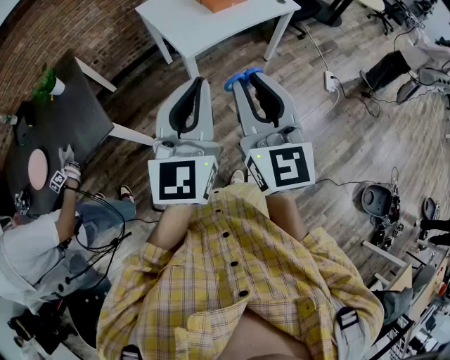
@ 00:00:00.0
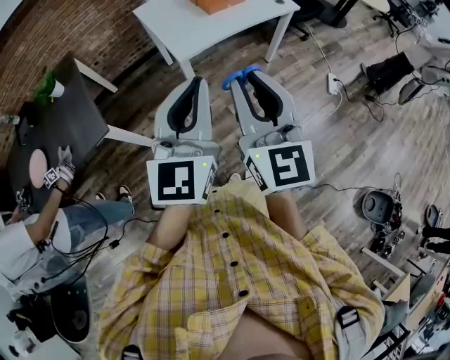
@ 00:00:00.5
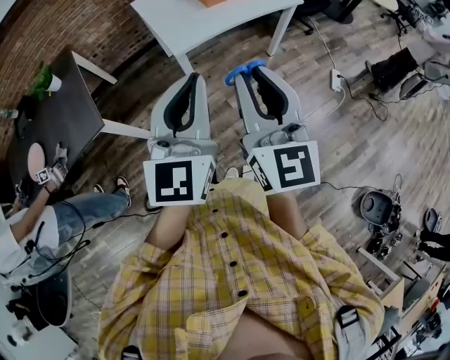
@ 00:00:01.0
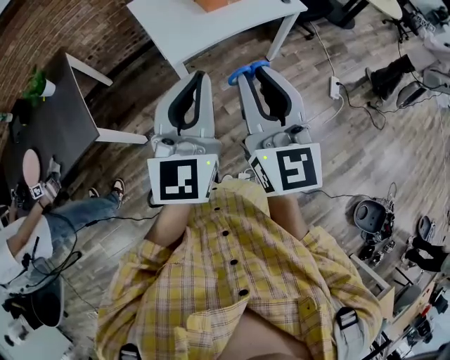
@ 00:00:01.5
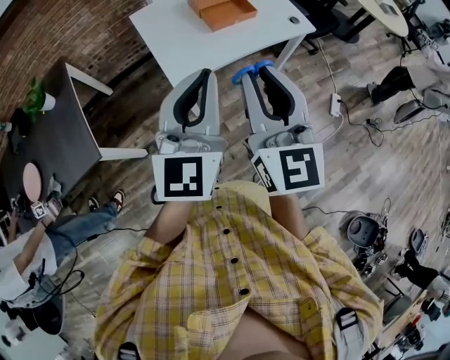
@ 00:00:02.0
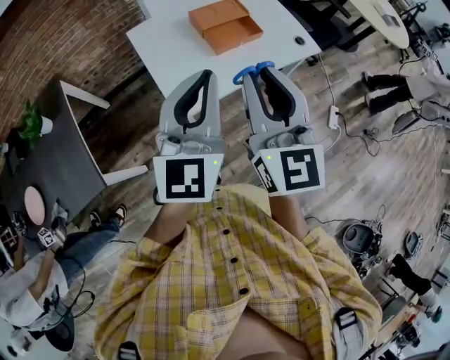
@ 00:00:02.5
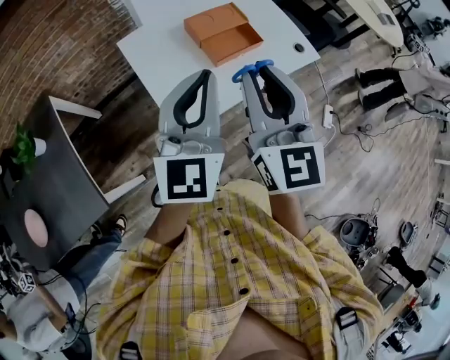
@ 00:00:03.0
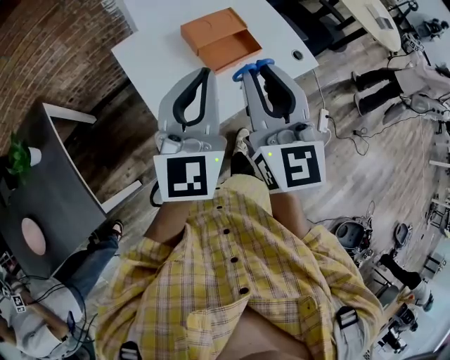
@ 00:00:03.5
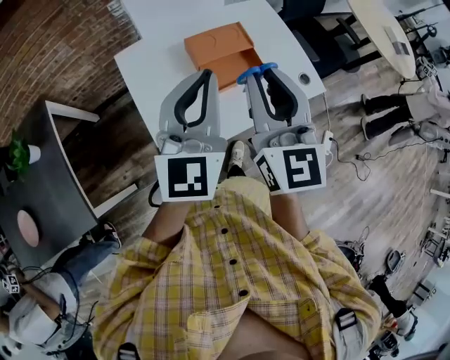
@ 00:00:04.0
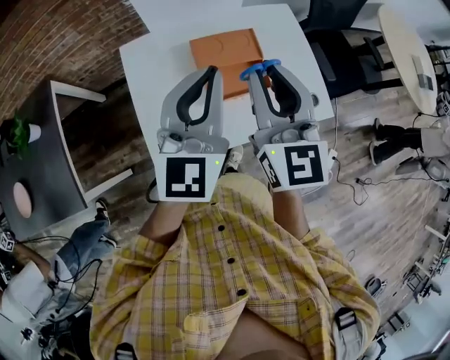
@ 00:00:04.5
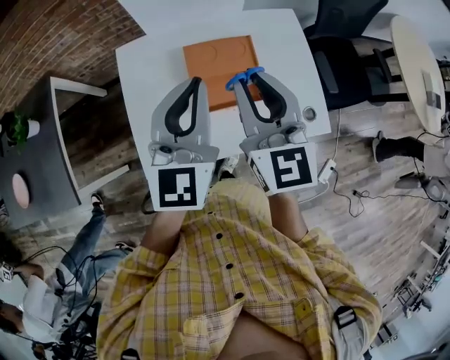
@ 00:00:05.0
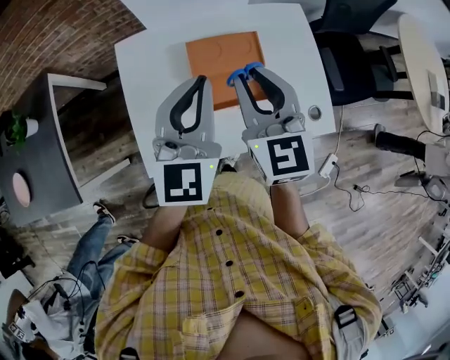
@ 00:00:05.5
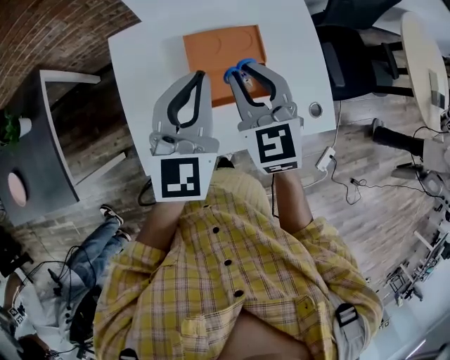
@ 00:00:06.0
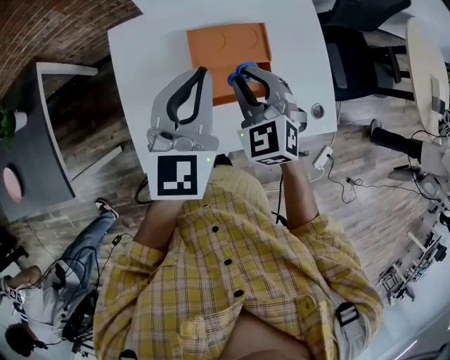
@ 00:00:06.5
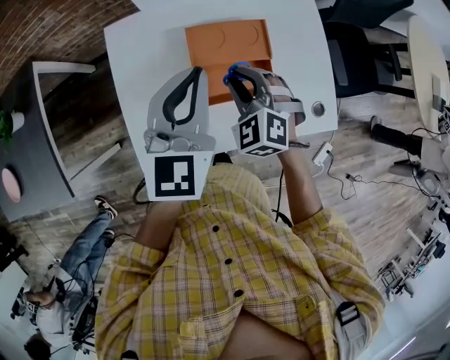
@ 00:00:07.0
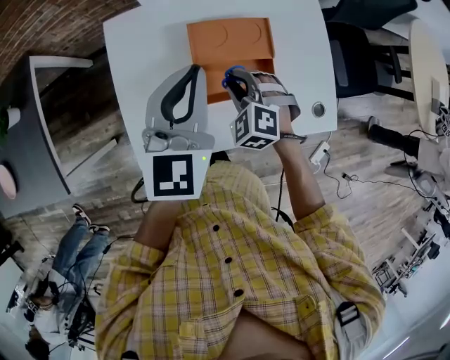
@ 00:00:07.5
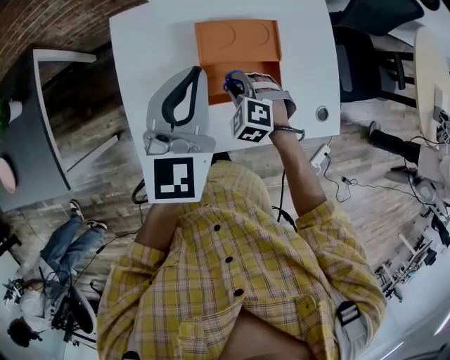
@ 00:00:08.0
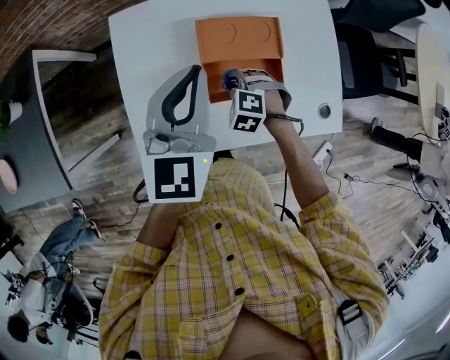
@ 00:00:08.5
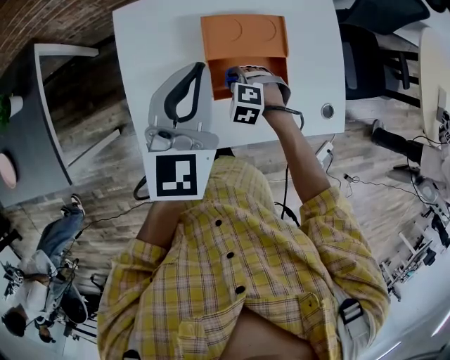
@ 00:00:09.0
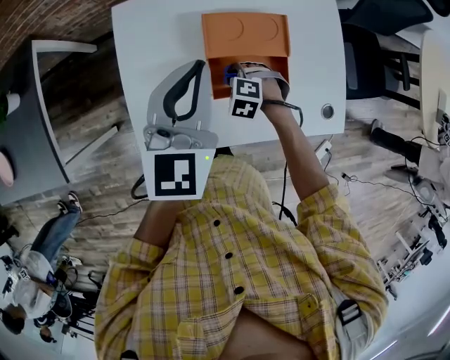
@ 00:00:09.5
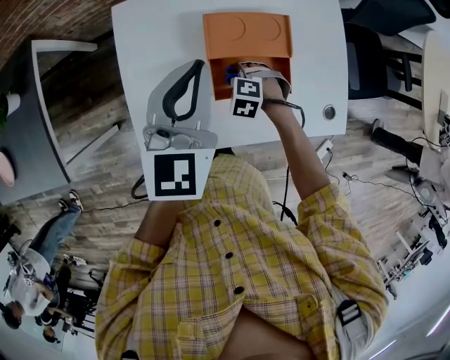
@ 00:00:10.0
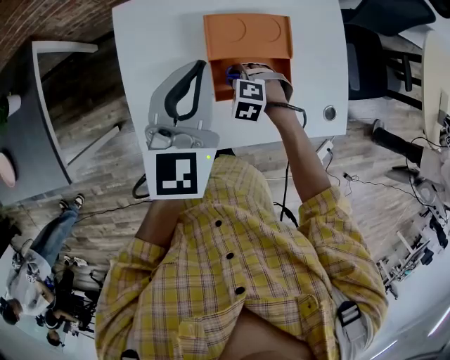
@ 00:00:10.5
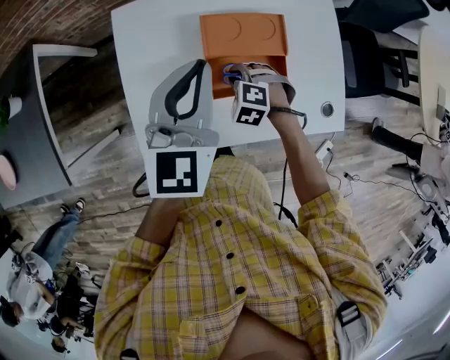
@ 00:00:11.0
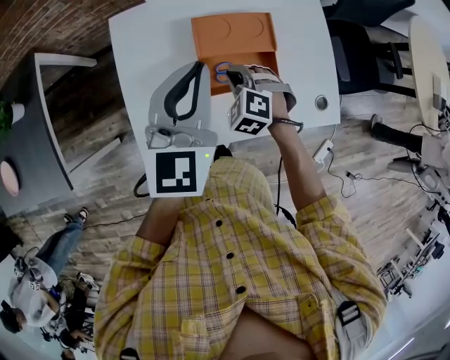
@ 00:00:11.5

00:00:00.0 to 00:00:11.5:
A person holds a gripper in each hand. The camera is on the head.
00:00:00.0 to 00:00:02.0: The grippers both shift forward by about 20 cm.
00:00:02.0 to 00:00:04.0: Both grippers move forward, about 35 cm.
00:00:04.0 to 00:00:06.0: The left gripper goes roughly 20 cm forward, downward and to the right. The right gripper moves forward and downward, about 20 cm, and turns by roughly 30 degrees.
00:00:06.0 to 00:00:07.5: The right gripper goes some 20 cm downward, and angles its fingers downward, by approximately 30 degrees.
00:00:07.5 to 00:00:09.5: The right gripper is displaced downward by some 15 cm, and rotates some 20 degrees.
00:00:09.5 to 00:00:11.5: The right gripper is displaced upward by roughly 10 cm, and swivels some 20 degrees.

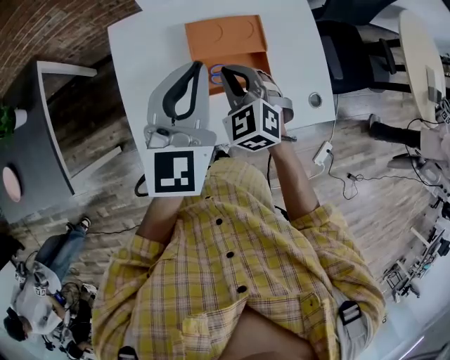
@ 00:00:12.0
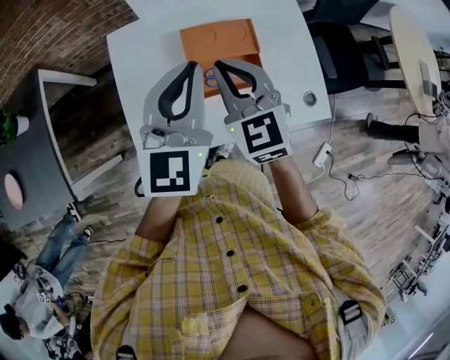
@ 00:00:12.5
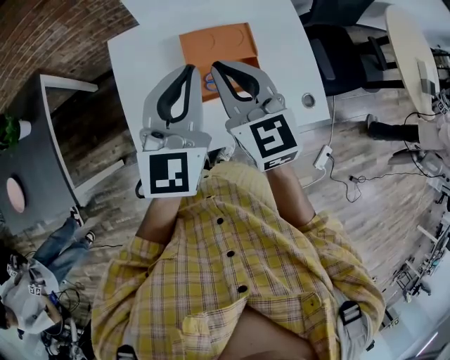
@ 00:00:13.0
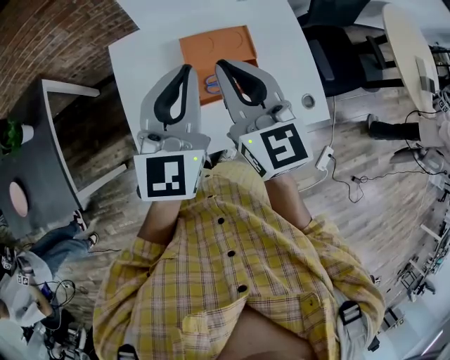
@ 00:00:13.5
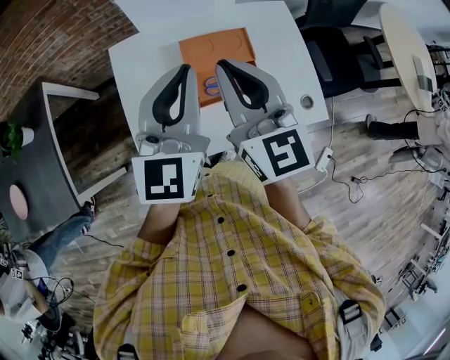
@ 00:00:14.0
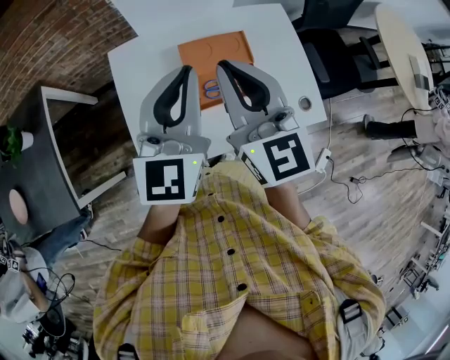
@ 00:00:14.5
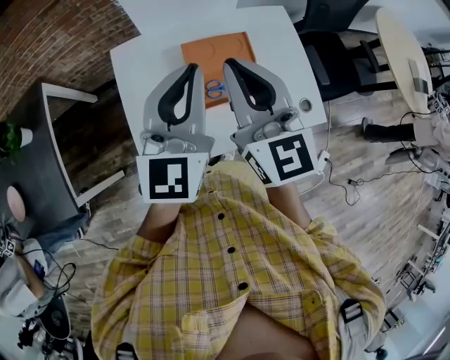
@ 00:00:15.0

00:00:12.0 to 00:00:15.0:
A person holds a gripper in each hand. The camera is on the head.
00:00:12.0 to 00:00:13.5: The right gripper goes roughly 20 cm upward, and tilts its fingers approximately 30 degrees upward.
00:00:13.5 to 00:00:15.0: There are only small adjustments of the grippers.

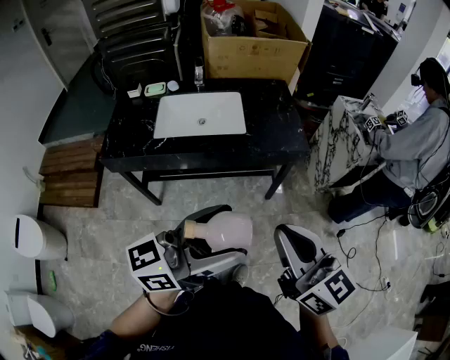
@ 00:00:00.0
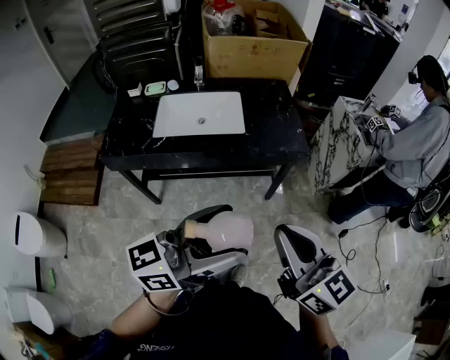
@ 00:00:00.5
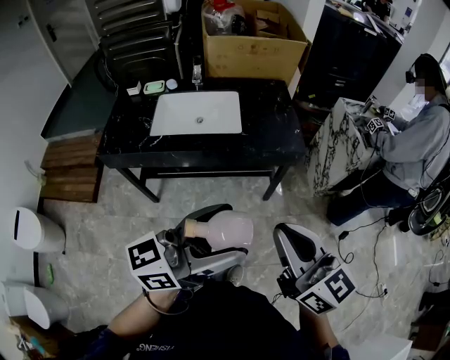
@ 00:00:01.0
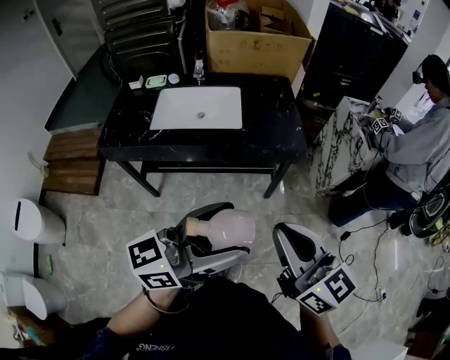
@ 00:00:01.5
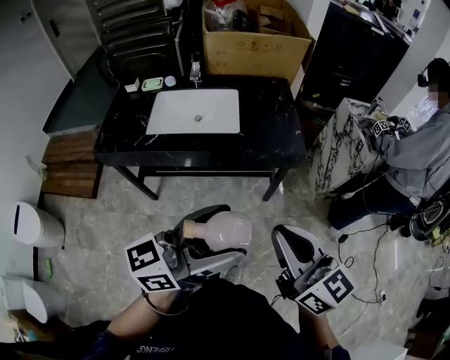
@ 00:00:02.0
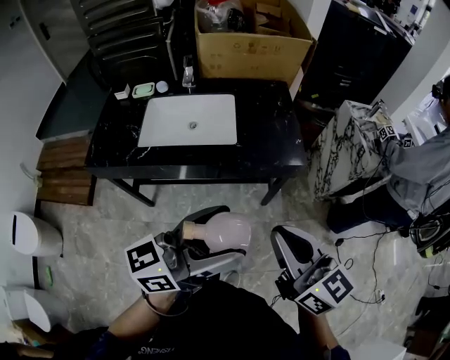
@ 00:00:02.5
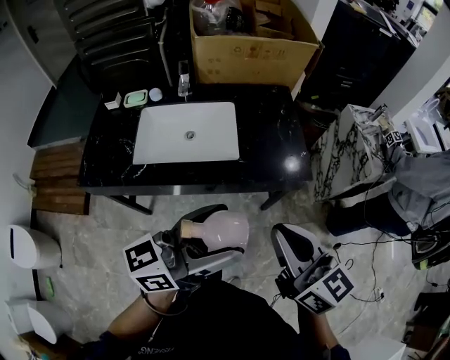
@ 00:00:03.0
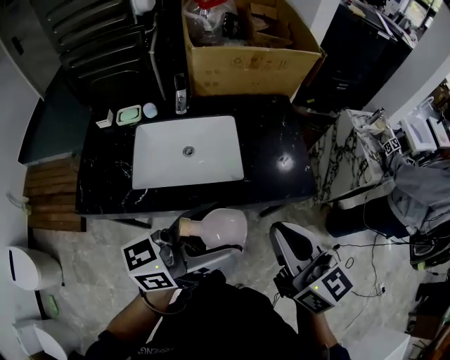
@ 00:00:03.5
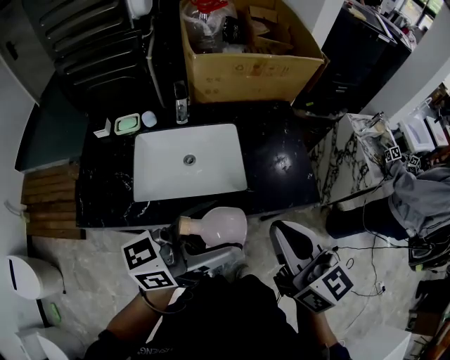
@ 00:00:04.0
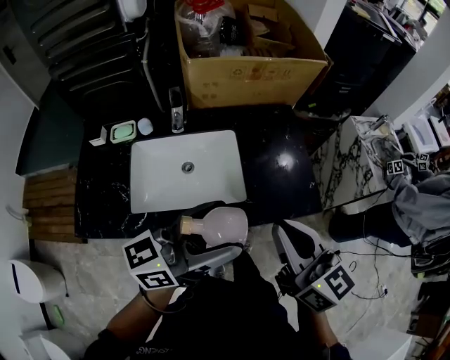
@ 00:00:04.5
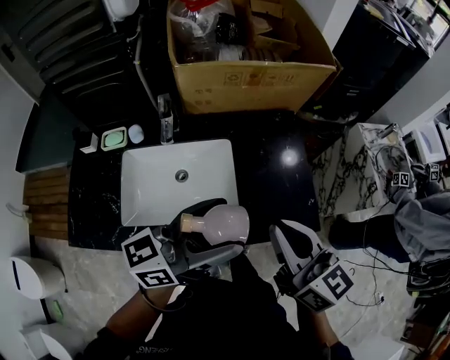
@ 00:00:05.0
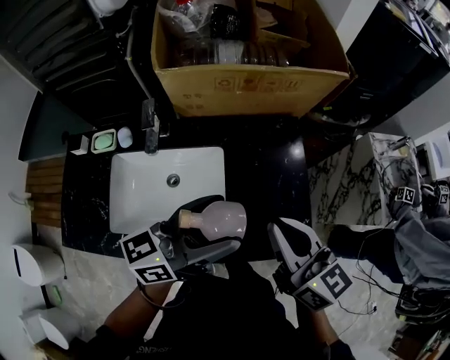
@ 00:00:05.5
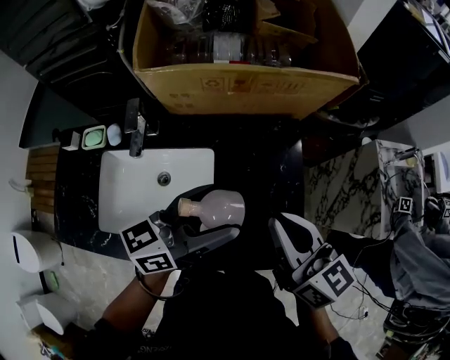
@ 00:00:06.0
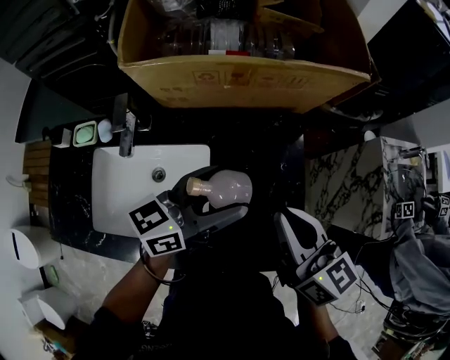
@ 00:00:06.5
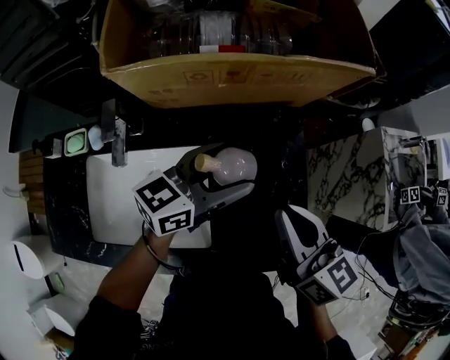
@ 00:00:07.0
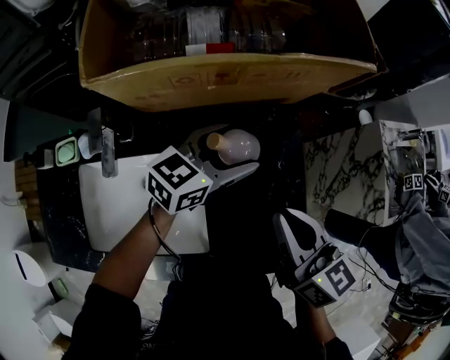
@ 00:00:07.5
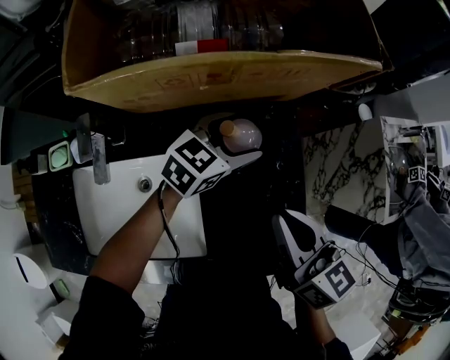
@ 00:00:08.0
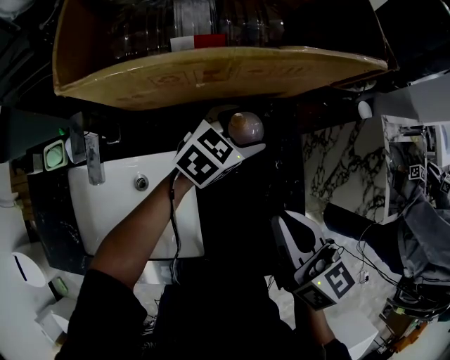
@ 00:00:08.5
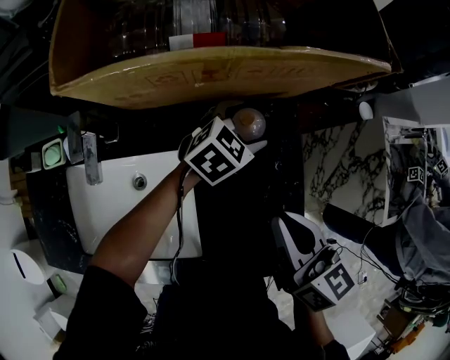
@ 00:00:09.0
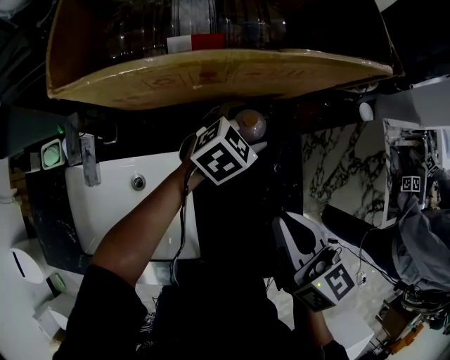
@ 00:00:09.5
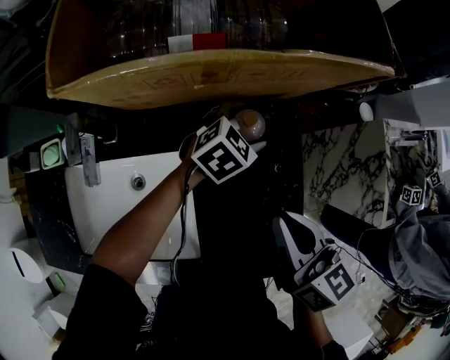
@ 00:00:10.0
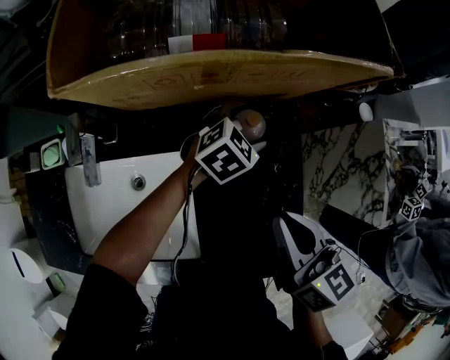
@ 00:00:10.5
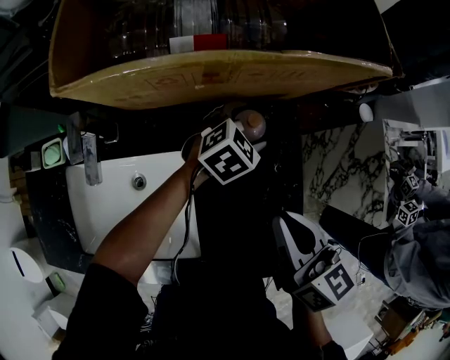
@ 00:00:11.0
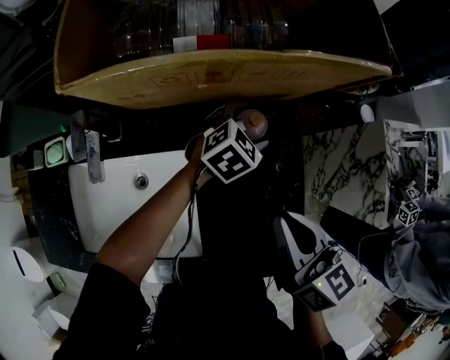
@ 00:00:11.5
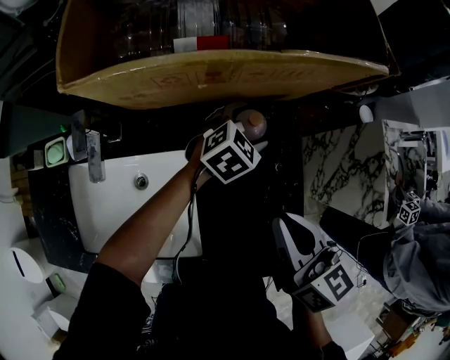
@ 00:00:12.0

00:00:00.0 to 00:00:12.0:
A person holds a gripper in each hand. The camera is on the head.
00:00:00.0 to 00:00:02.0: Both grippers move to the right, about 5 cm.
00:00:02.0 to 00:00:04.0: The two grippers go some 30 cm forward and to the left.
00:00:04.0 to 00:00:06.0: Both grippers move forward, some 30 cm.
00:00:06.0 to 00:00:08.0: The left gripper heads forward and downward, covering some 25 cm, and swivels about 40 degrees. The right gripper travels downward and forward by some 10 cm.
00:00:08.0 to 00:00:10.0: The left gripper goes roughly 5 cm downward, and turns by approximately 20 degrees.
00:00:10.0 to 00:00:12.0: Neither gripper changes place.
